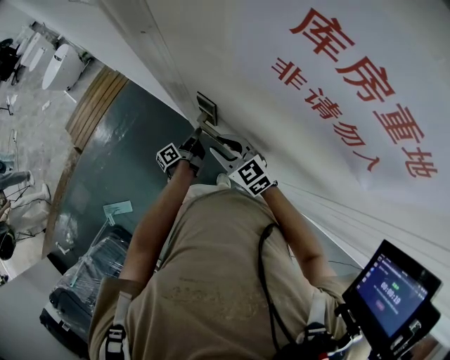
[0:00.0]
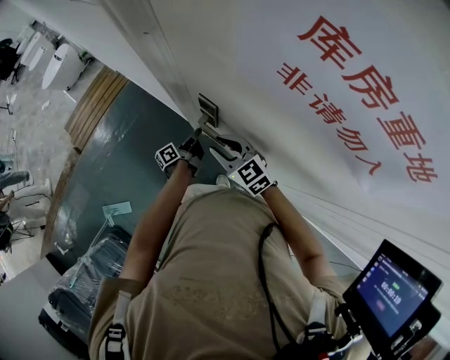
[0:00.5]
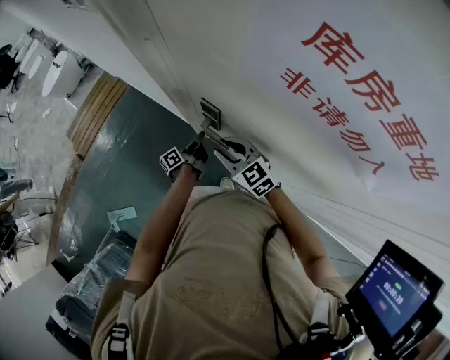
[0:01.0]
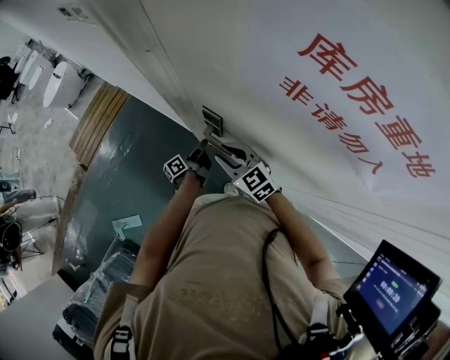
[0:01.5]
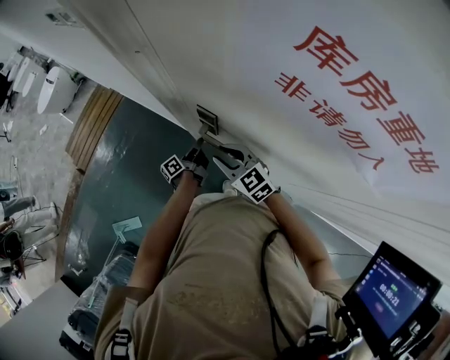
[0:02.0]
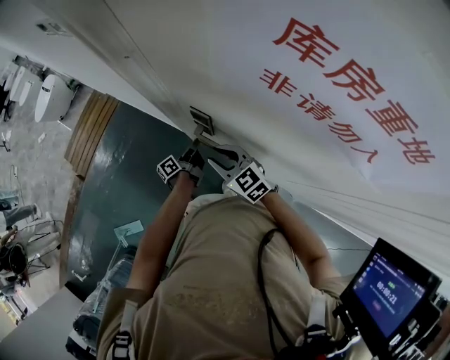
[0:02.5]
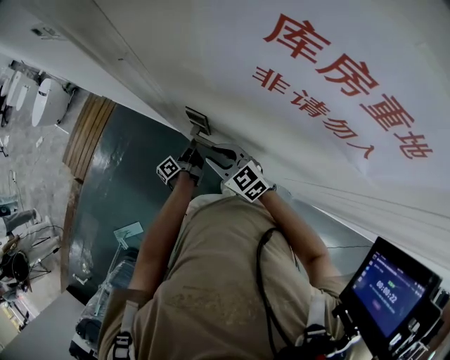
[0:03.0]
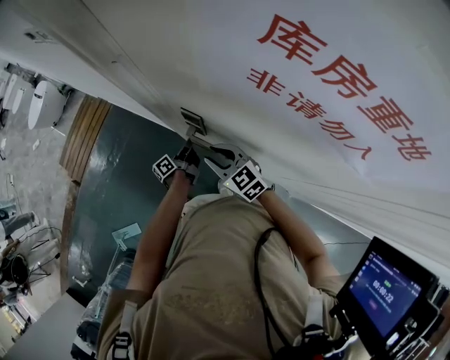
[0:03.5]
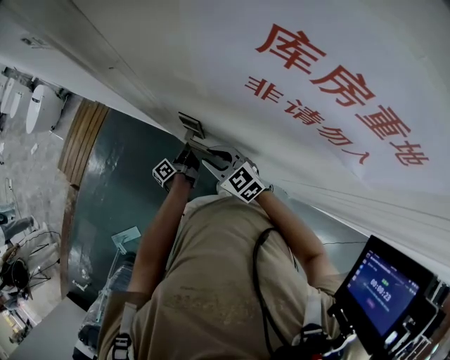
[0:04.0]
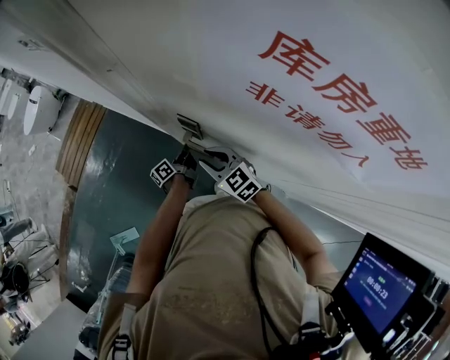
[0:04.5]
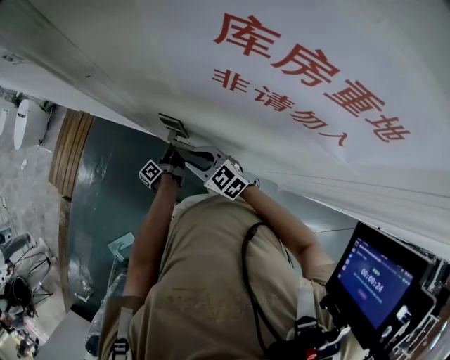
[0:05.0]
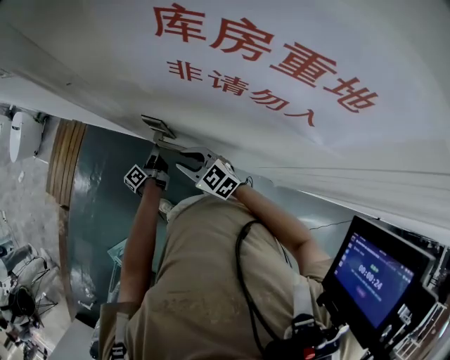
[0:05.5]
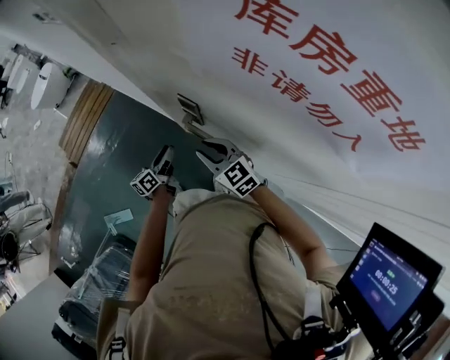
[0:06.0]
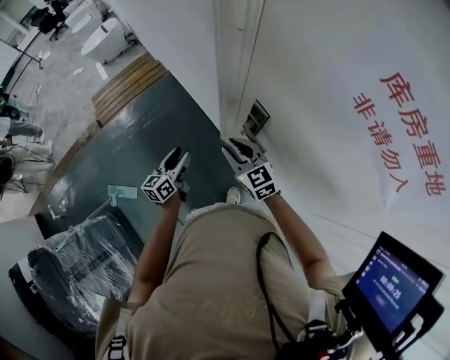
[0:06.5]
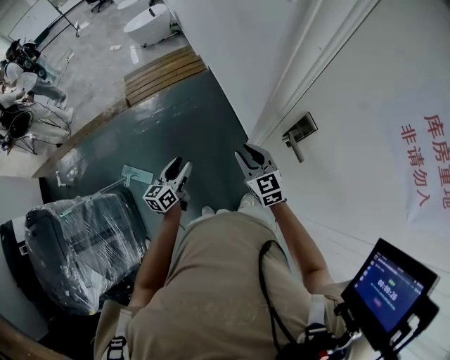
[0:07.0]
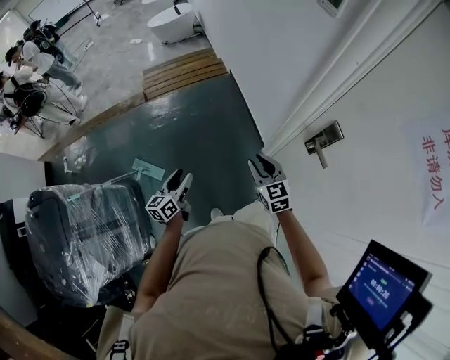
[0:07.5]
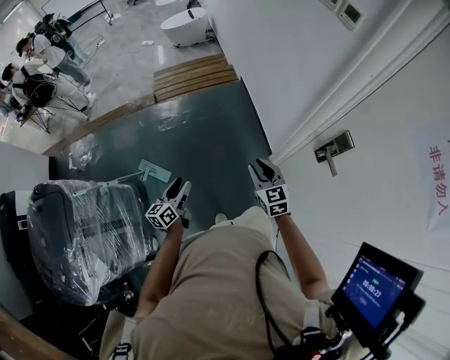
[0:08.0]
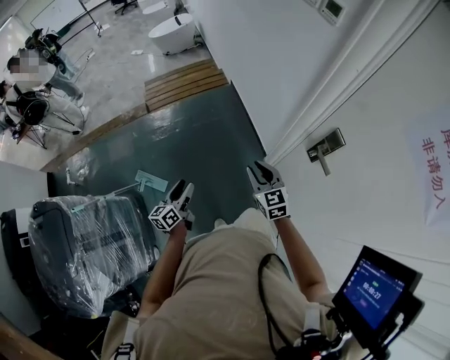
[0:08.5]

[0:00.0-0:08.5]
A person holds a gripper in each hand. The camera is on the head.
0:00.0 to 0:04.0: The grippers move only a little.
0:04.0 to 0:06.5: The right gripper travels to the left by some 10 cm; the left gripper is displaced to the left, backward and upward by about 25 cm, rolls clockwise, seen from behind, by some 50 degrees, and opens up.
0:06.5 to 0:08.5: The grippers both shift to the left by approximately 25 cm. The left gripper swivels about 20 degrees.

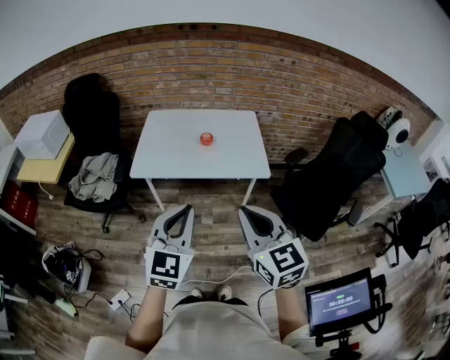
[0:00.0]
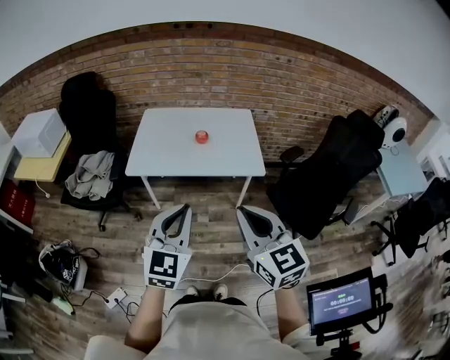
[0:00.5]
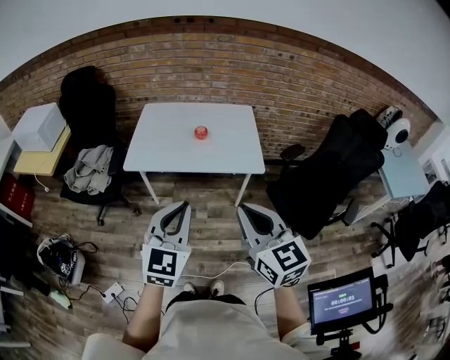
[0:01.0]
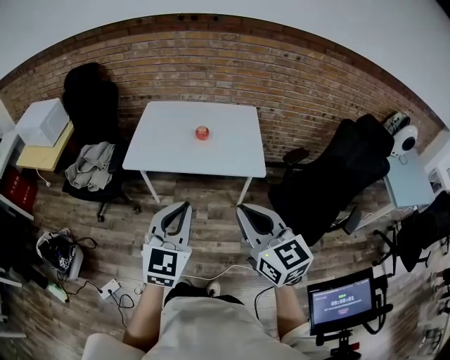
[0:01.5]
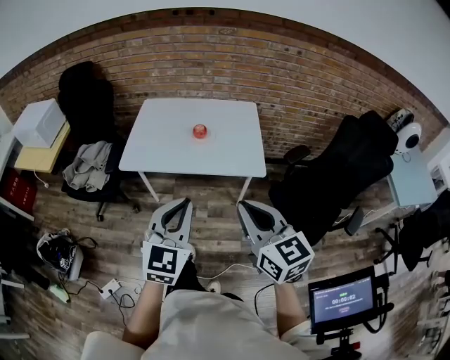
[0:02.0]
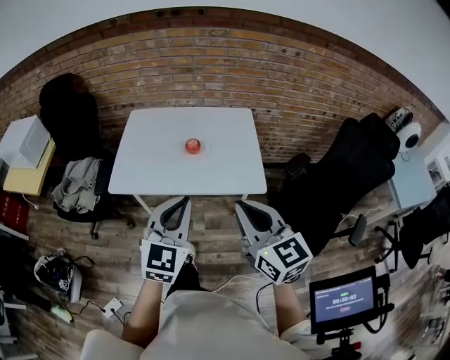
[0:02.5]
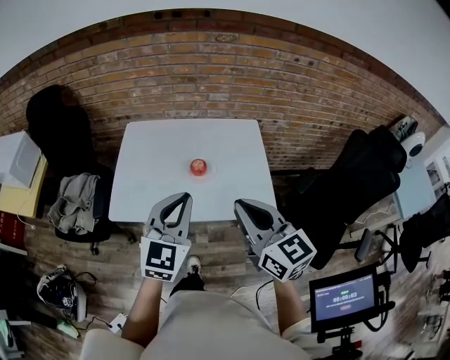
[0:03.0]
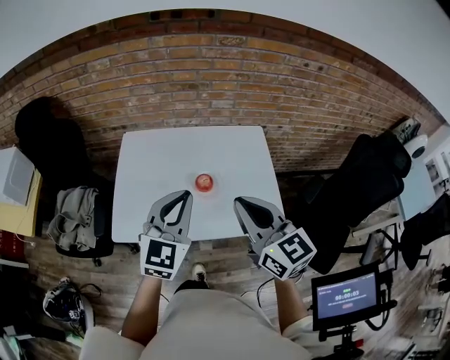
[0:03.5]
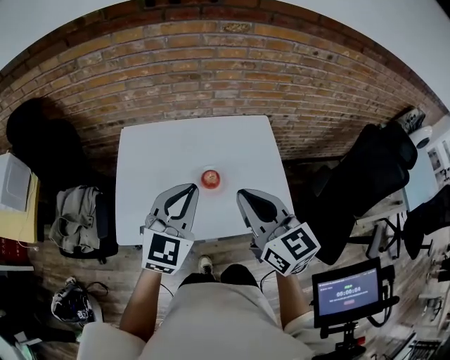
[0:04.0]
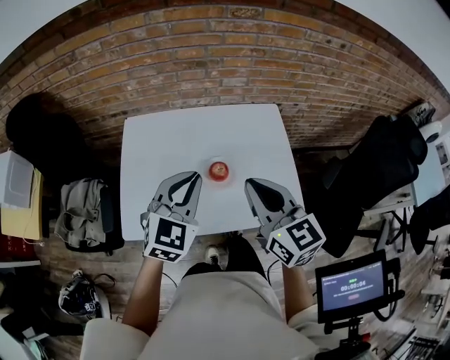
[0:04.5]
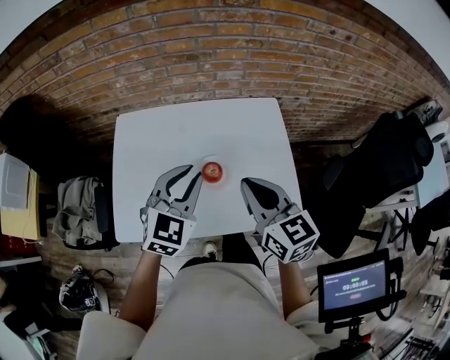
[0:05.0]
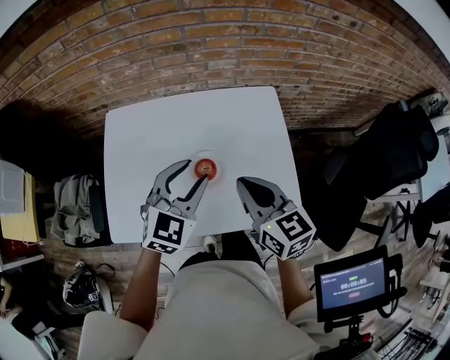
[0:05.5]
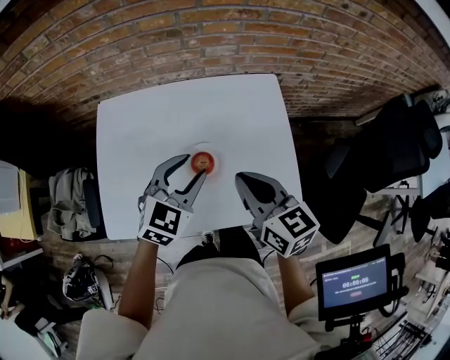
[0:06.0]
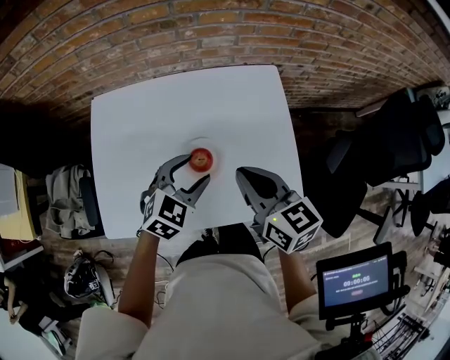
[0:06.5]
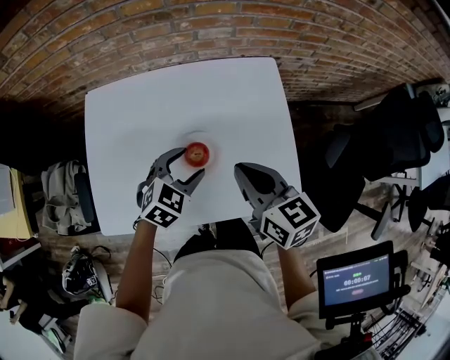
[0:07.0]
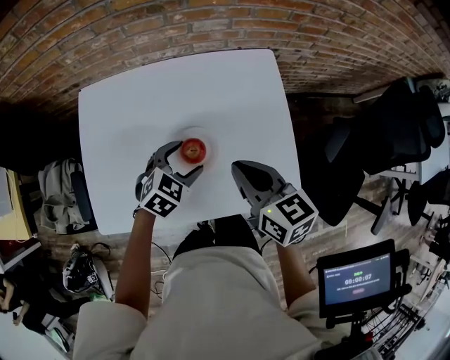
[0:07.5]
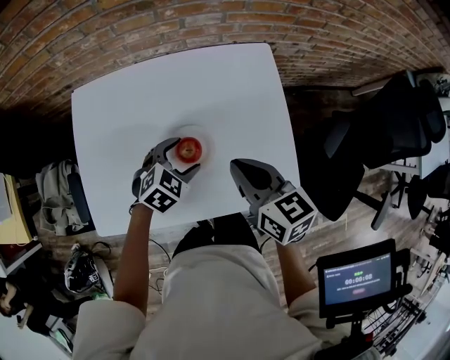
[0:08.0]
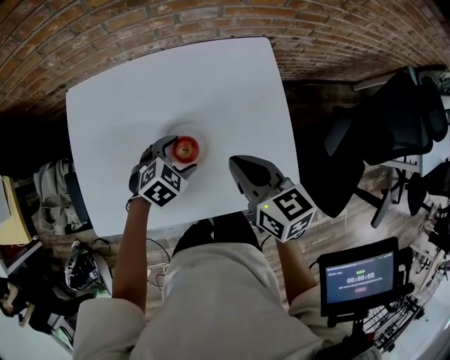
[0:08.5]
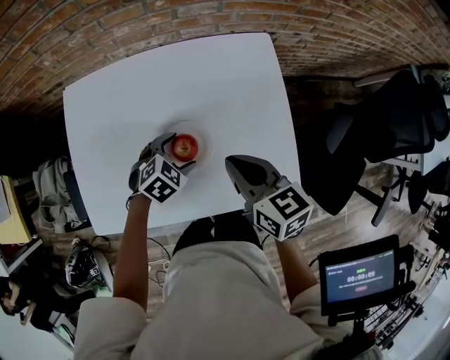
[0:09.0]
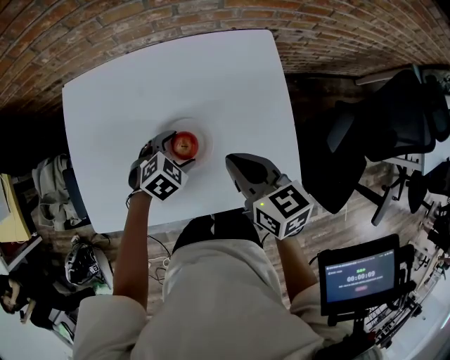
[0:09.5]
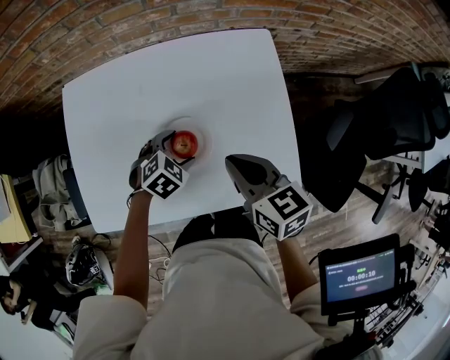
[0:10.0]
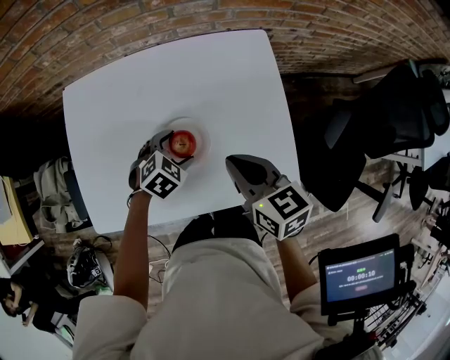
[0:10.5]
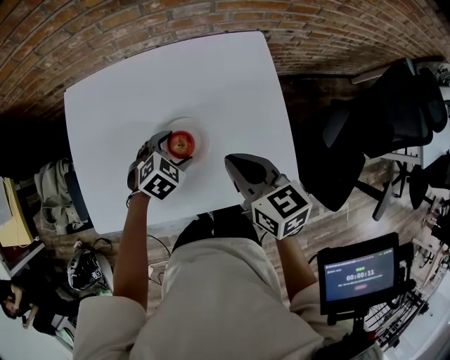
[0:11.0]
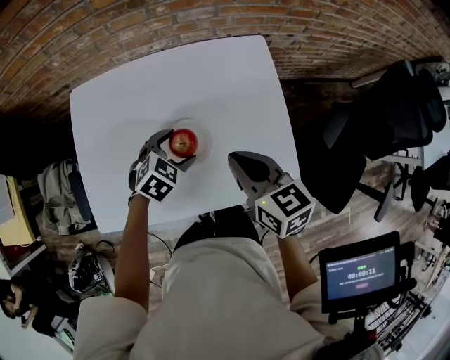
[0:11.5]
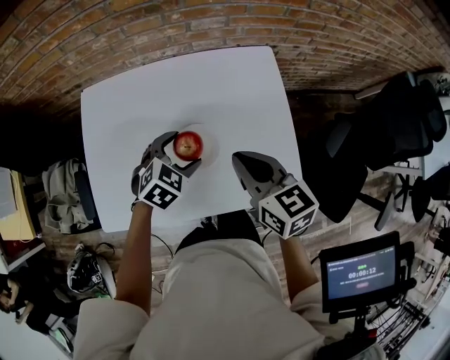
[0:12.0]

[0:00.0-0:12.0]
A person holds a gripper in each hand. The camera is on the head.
0:00.0 to 0:02.0: Both grippers move to the right and forward, roughly 10 cm.
0:02.0 to 0:04.0: Both grippers are carried forward, roughly 40 cm.
0:04.0 to 0:06.0: The grippers both shift downward and forward by about 20 cm. The left gripper rotates roughly 20 degrees, and opens up.
0:06.0 to 0:08.0: The left gripper travels downward by approximately 15 cm, changes its angle by approximately 30 degrees, and opens. Meanwhile the right gripper is displaced downward by about 5 cm.
0:08.0 to 0:10.0: The left gripper travels downward by about 5 cm.
0:10.0 to 0:12.0: The left gripper goes roughly 10 cm upward, while the right gripper moves upward, roughly 5 cm.

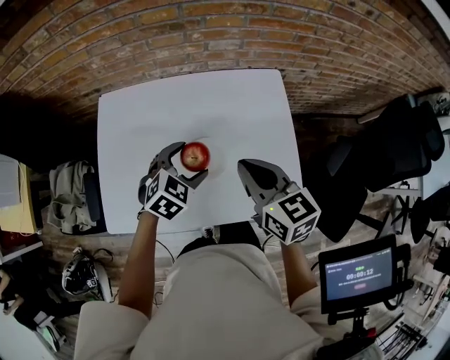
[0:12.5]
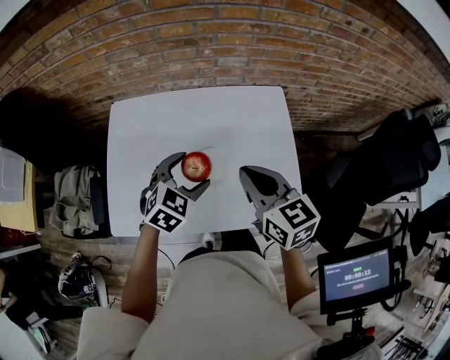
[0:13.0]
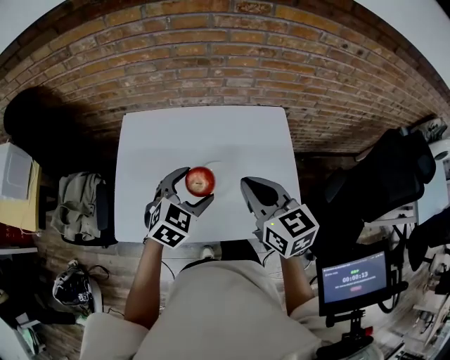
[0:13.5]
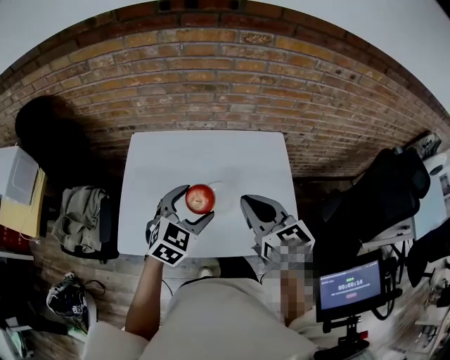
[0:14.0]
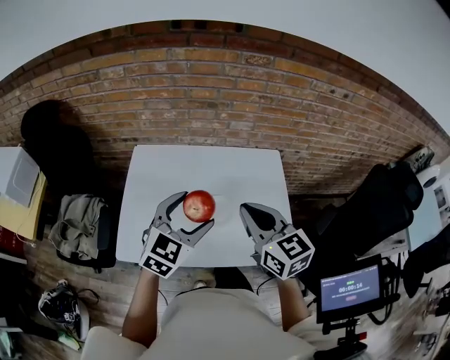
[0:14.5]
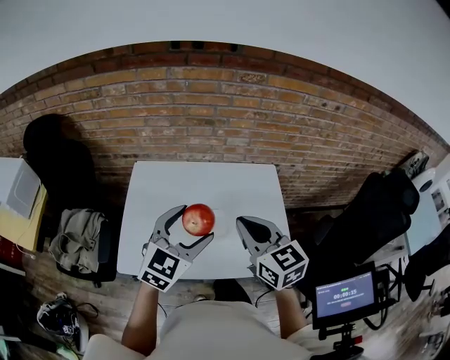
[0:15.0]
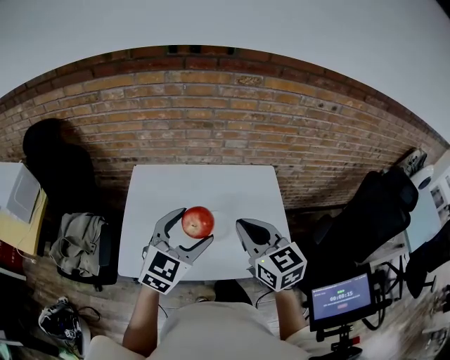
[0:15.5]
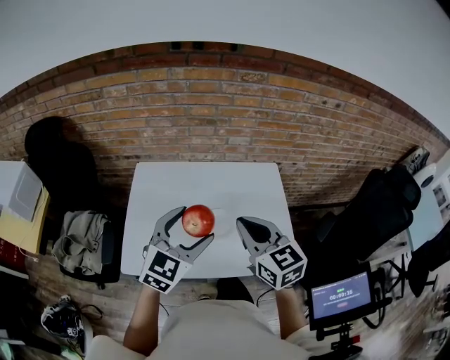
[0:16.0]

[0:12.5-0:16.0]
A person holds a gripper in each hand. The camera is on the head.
0:12.5 to 0:14.5: The left gripper moves upward and backward, some 20 cm, and swivels approximately 30 degrees; the right gripper moves upward, some 10 cm.
0:14.5 to 0:16.0: The grippers make only small movements.

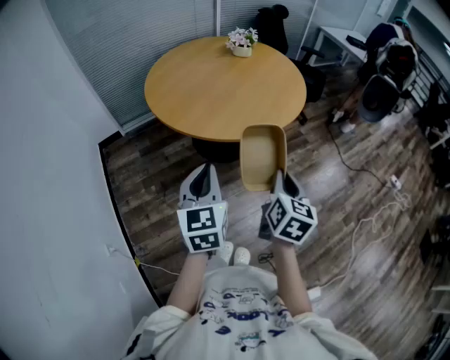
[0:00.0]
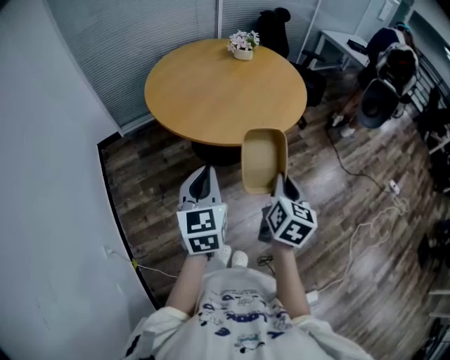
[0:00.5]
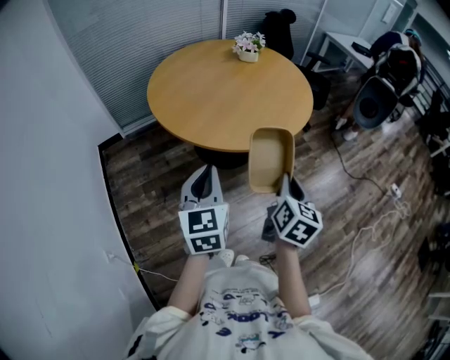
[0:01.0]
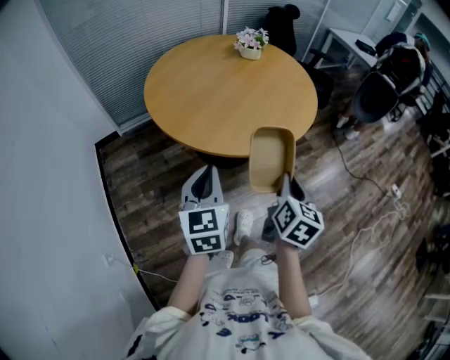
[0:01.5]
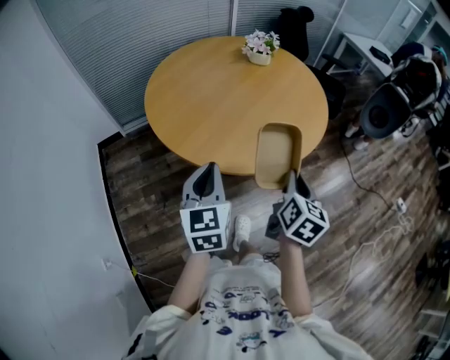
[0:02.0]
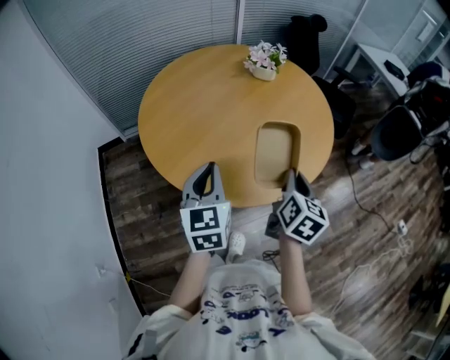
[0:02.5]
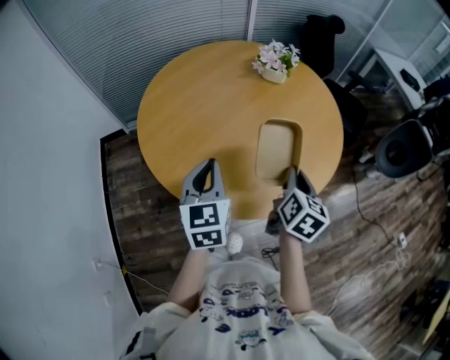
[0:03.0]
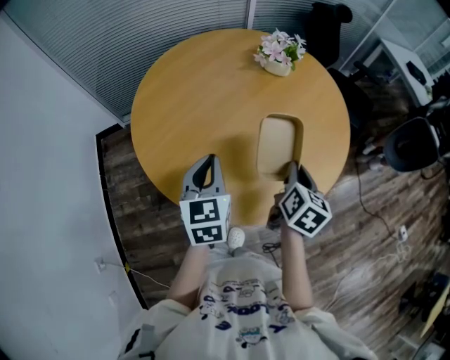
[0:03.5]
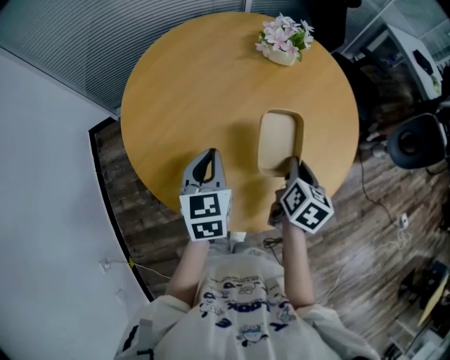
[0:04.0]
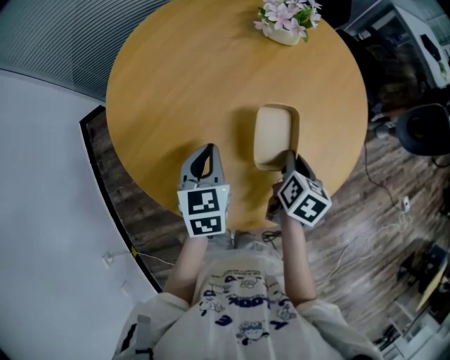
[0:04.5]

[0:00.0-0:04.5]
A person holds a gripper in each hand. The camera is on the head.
0:00.0 to 0:02.0: Both grippers move forward, about 20 cm.
0:02.0 to 0:04.5: Both grippers travel together forward and downward, about 35 cm. The left gripper turns by some 20 degrees. The right gripper turns by roughly 20 degrees.
